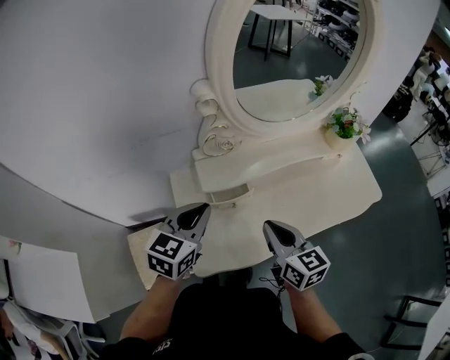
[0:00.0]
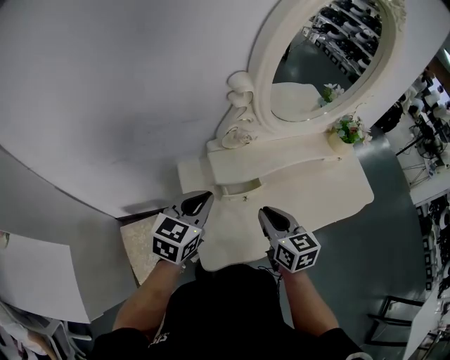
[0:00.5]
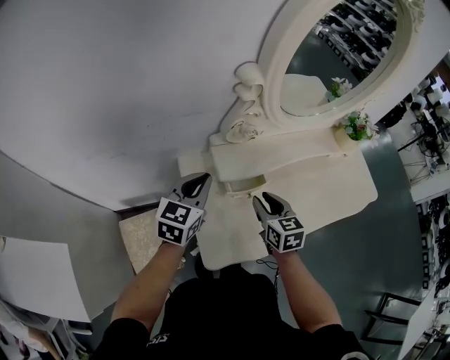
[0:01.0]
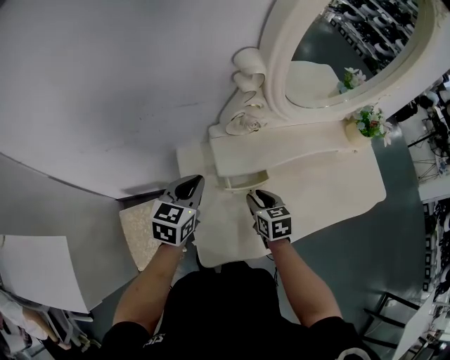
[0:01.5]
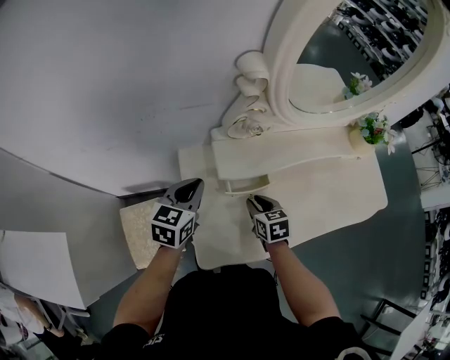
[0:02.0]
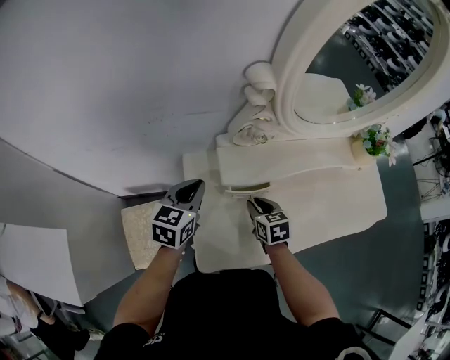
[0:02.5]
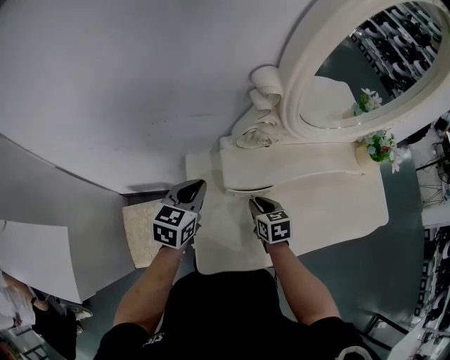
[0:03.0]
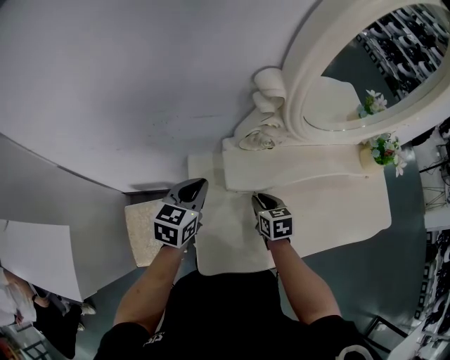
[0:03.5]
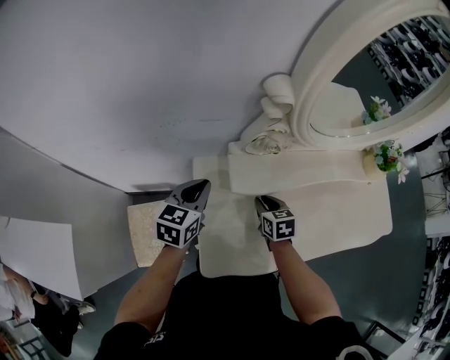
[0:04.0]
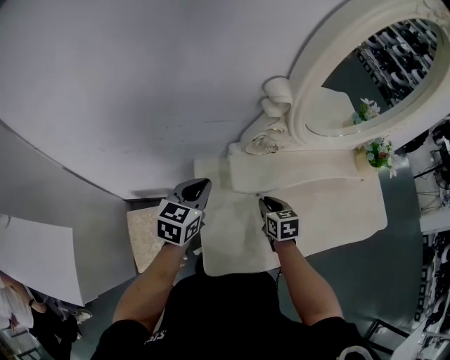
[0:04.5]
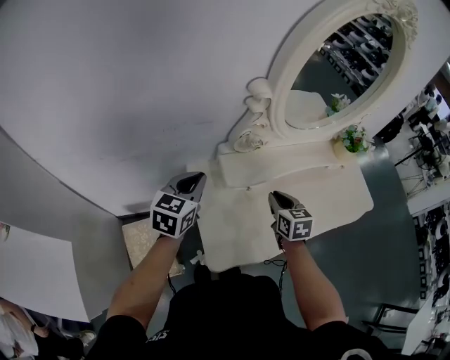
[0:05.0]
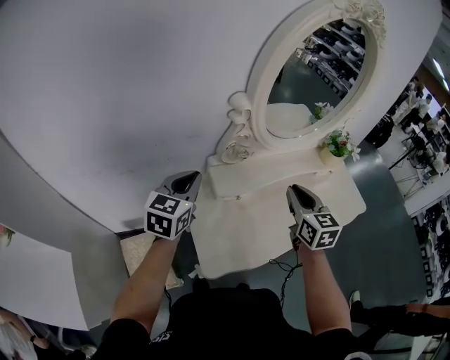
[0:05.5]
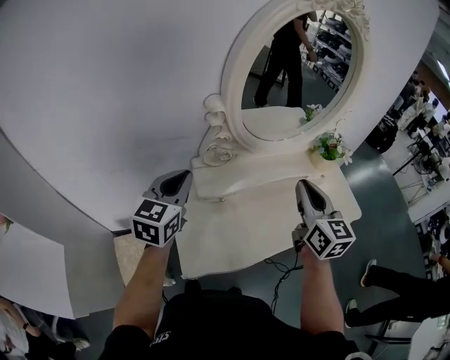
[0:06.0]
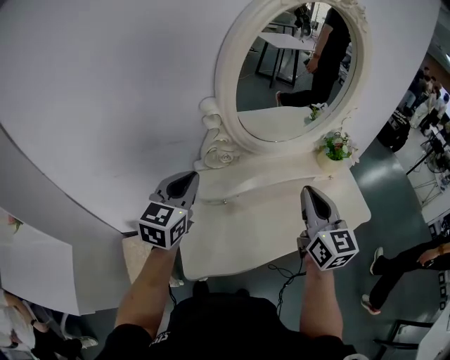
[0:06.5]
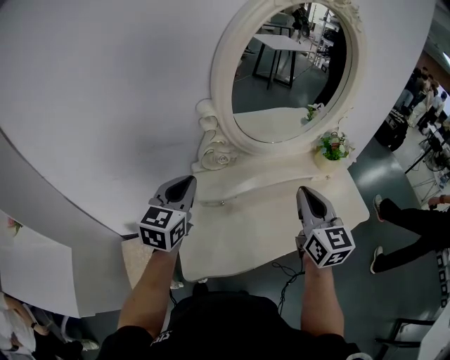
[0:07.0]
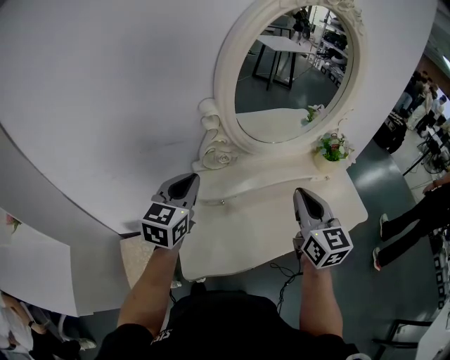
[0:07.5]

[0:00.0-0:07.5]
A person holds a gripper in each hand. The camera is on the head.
0:00.0 to 0:02.0: The left gripper goes roughly 15 cm downward, to the left and forward, while the right gripper goes some 25 cm downward and forward, rotates about 30 degrees, and opens its fingers.
0:02.0 to 0:04.0: The right gripper moves forward, approximately 5 cm.
0:04.0 to 0:05.5: The left gripper goes approximately 15 cm upward. Meanwhile the right gripper shifts some 30 cm upward, and swivels roughly 30 degrees.
0:05.5 to 0:07.5: The right gripper shifts roughly 10 cm to the right and upward. The left gripper goes approximately 10 cm to the right.

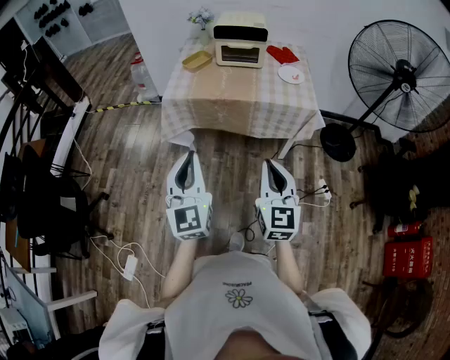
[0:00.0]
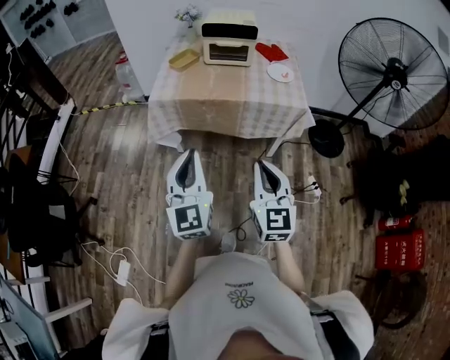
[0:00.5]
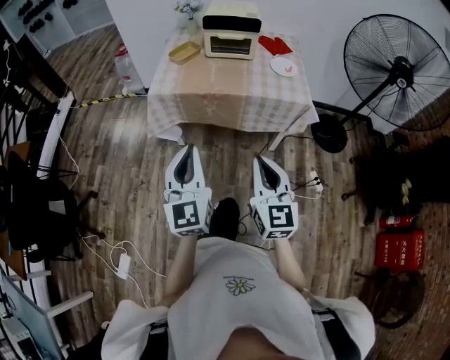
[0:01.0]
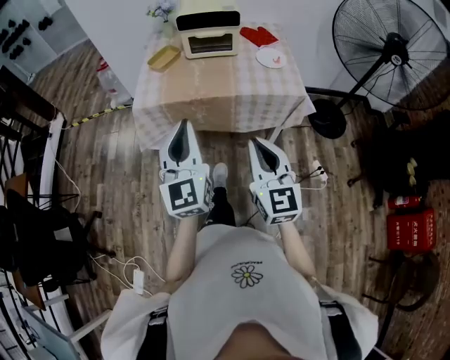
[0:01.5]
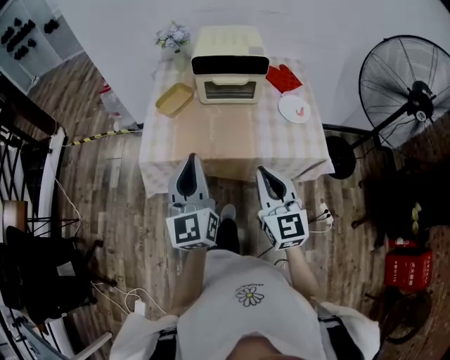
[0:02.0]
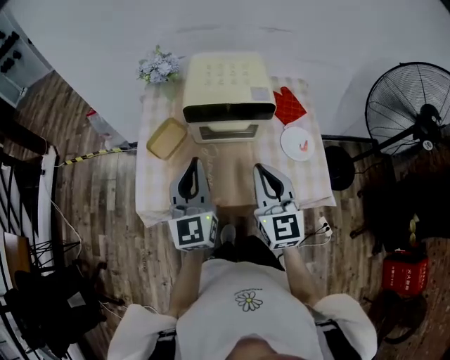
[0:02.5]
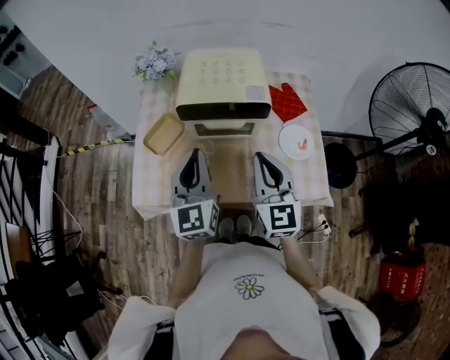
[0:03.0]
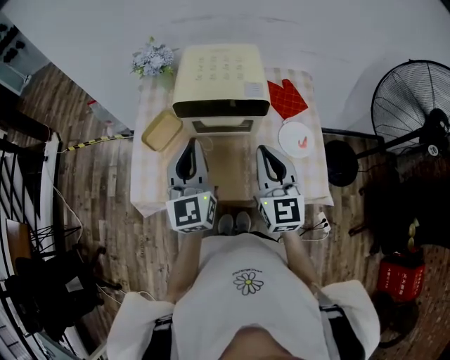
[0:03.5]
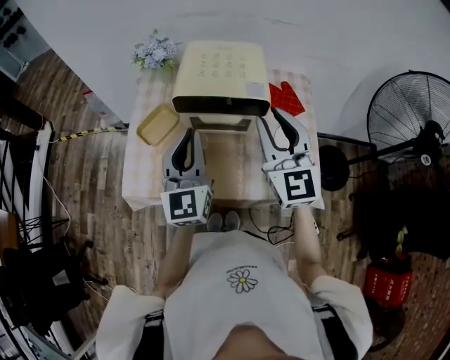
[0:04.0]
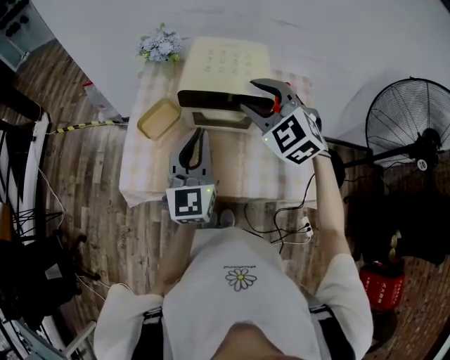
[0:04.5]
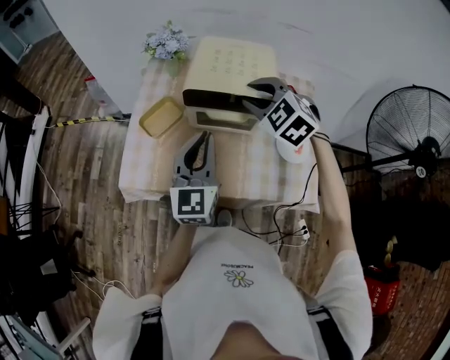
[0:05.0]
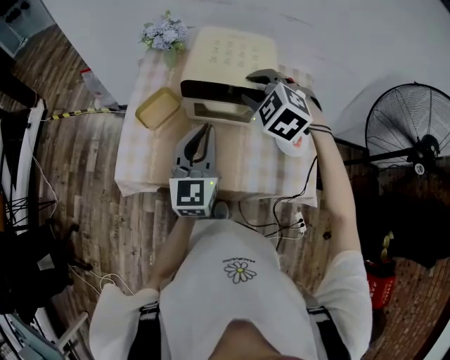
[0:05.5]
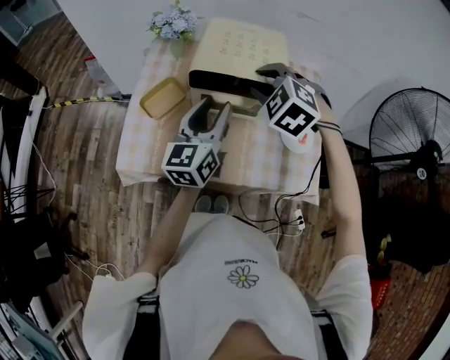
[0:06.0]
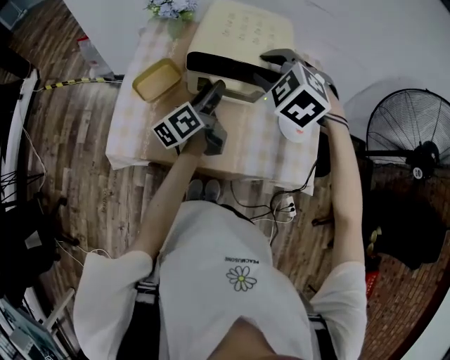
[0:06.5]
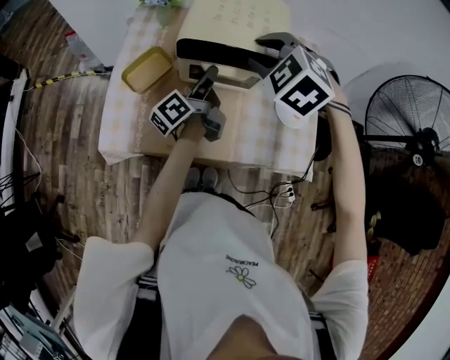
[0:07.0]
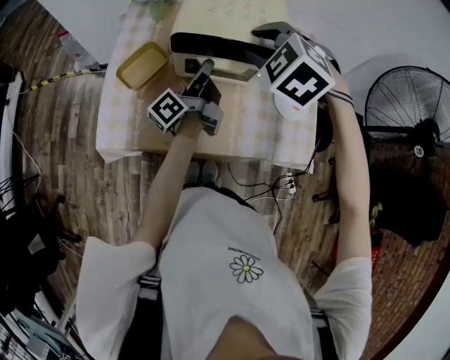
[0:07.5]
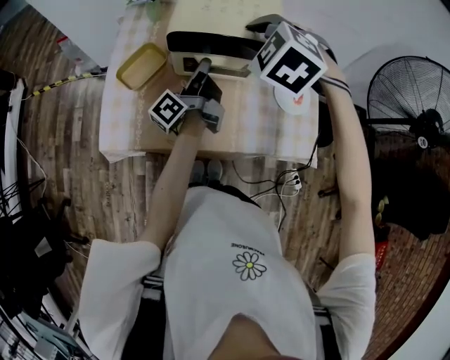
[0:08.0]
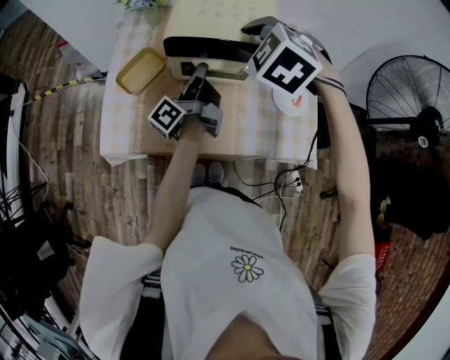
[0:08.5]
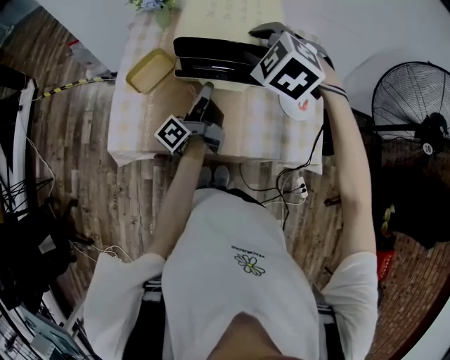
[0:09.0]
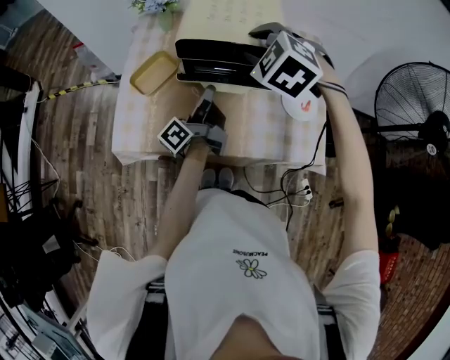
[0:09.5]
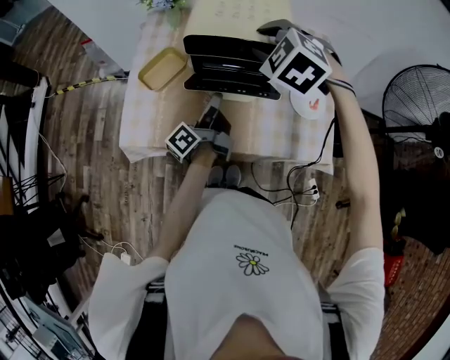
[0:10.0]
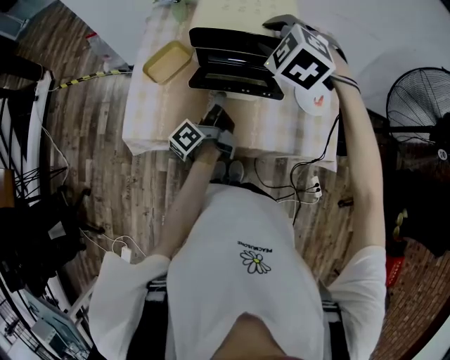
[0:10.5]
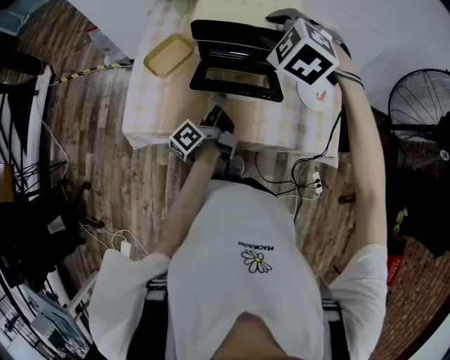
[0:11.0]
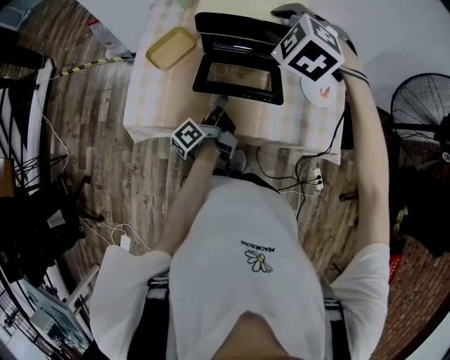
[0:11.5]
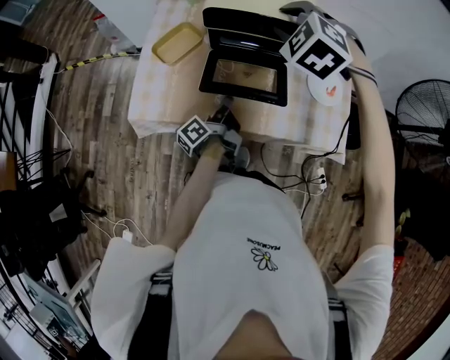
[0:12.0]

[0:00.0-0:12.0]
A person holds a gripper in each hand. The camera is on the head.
0:00.0 to 0:02.0: Both grippers travel together forward, roughly 35 cm.
0:02.0 to 0:04.0: The left gripper heads forward, covering about 25 cm. Meanwhile the right gripper shifts some 30 cm forward and upward.
0:04.0 to 0:06.0: The left gripper shifts by approximately 5 cm, changes its angle by roughly 30 degrees, and opens. The right gripper goes roughly 10 cm forward and downward, and angles its fingers downward, by some 50 degrees.
0:06.0 to 0:08.0: The left gripper is displaced downward and forward by some 10 cm, rolls counterclockwise, seen from behind, by some 60 degrees, and closes its fingers.
0:08.0 to 0:10.0: The left gripper is displaced backward by approximately 10 cm.
0:10.0 to 0:12.0: The left gripper is displaced downward and backward by some 10 cm.

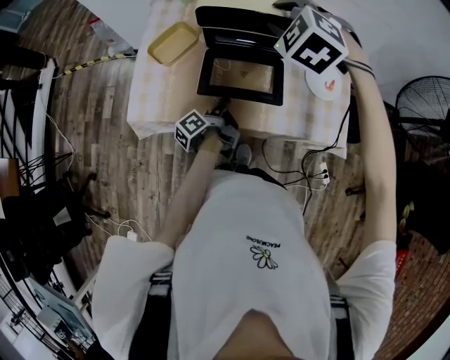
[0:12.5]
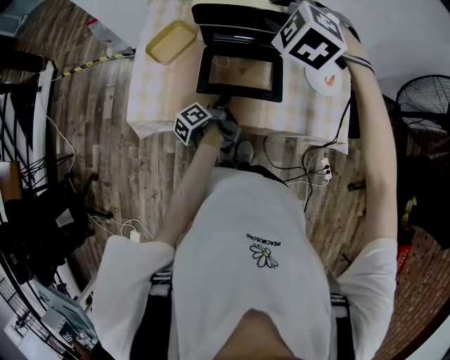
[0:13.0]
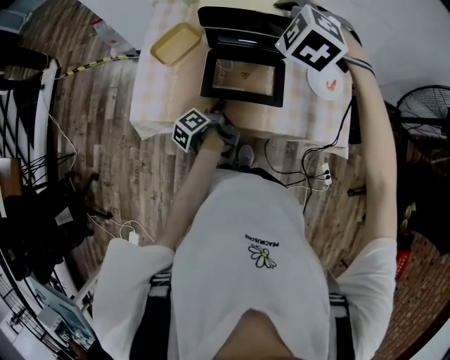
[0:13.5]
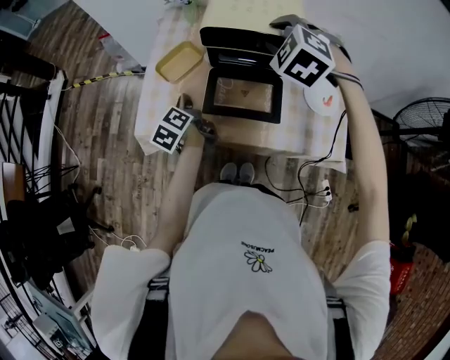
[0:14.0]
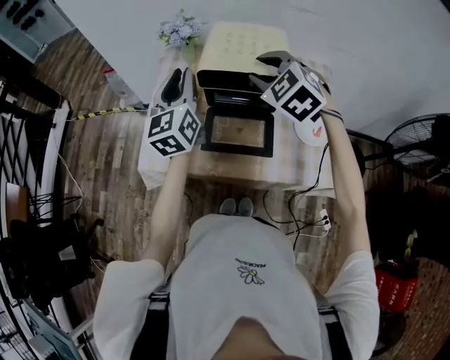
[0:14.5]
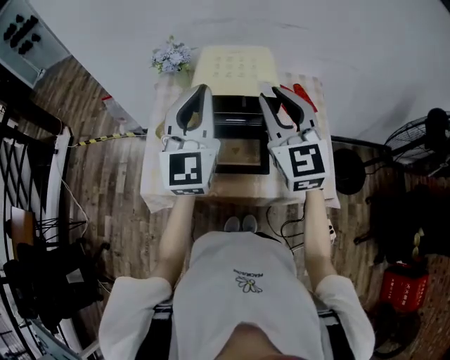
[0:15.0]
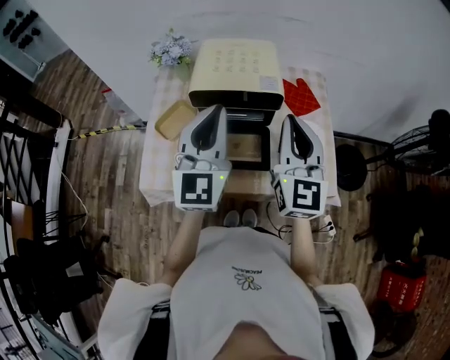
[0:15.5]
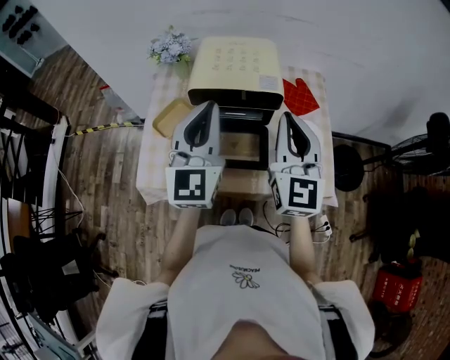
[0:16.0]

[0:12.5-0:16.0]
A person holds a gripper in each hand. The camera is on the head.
0:12.5 to 0:14.5: The left gripper travels upward by about 30 cm, and rolls clockwise, seen from behind, by approximately 80 degrees.
0:14.5 to 0:16.0: The left gripper heads to the right and backward, covering some 10 cm, and turns by about 20 degrees. The right gripper is displaced backward and to the right by approximately 15 cm, angles its fingers upward, by about 40 degrees, and closes up.

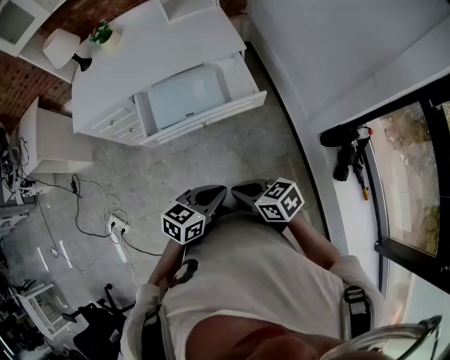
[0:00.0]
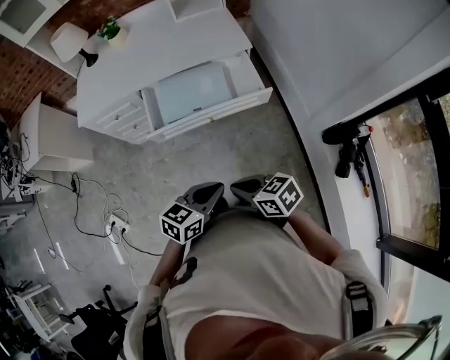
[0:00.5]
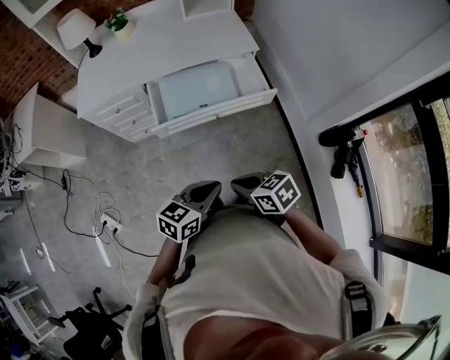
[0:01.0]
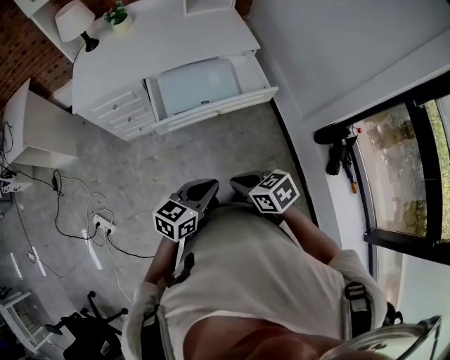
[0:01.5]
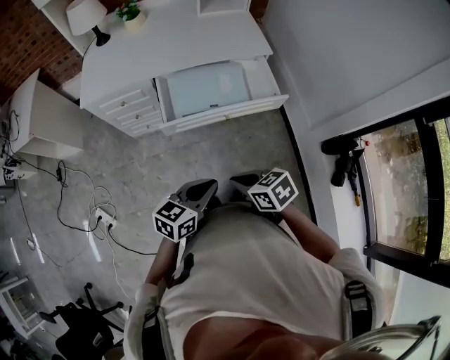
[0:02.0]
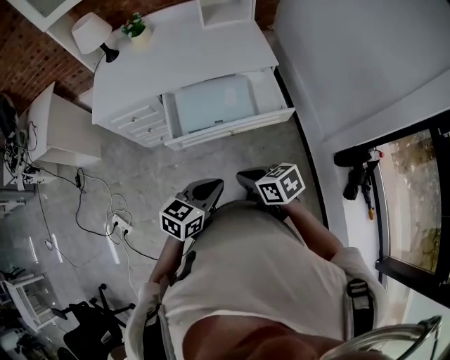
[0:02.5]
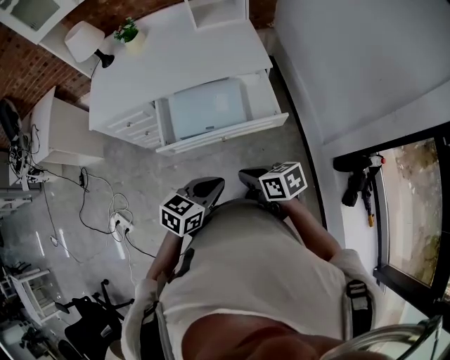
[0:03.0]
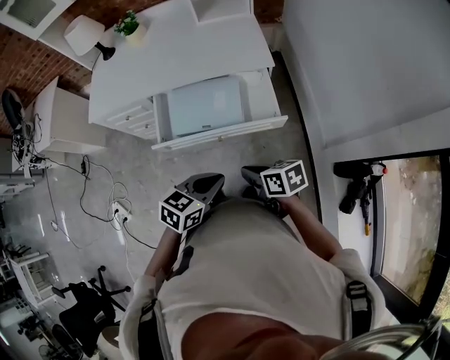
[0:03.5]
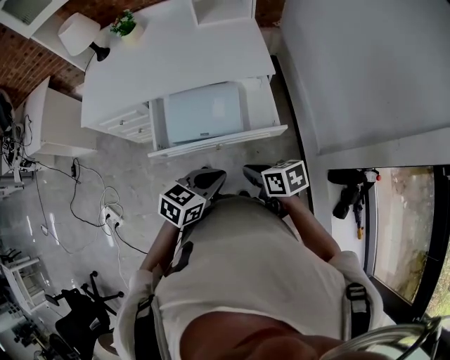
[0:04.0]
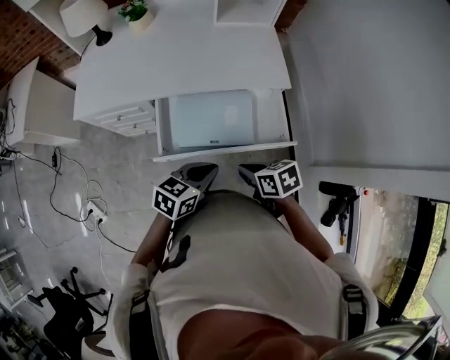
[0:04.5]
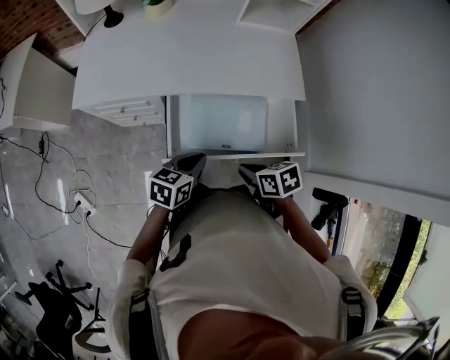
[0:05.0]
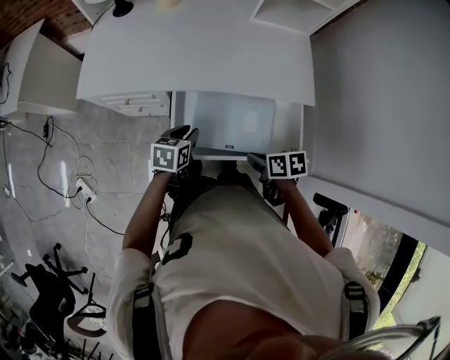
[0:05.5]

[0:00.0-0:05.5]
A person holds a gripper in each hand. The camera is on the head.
0:00.0 to 0:02.0: The left gripper ends up roughly 15 cm from where it was. The right gripper shifts by some 10 cm.
0:02.0 to 0:03.5: Both grippers travel together to the right and forward, approximately 20 cm.
0:03.5 to 0:05.5: The left gripper heads forward, to the left and downward, covering roughly 40 cm, and rotates approximately 30 degrees. The right gripper goes roughly 20 cm forward and to the left, and swivels about 20 degrees.
